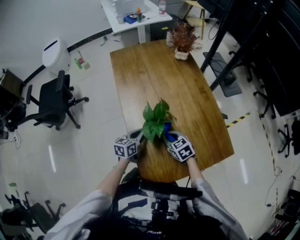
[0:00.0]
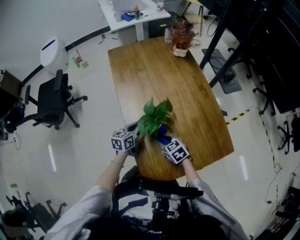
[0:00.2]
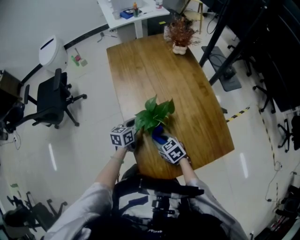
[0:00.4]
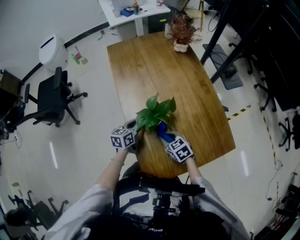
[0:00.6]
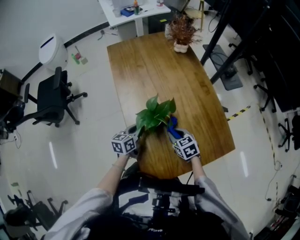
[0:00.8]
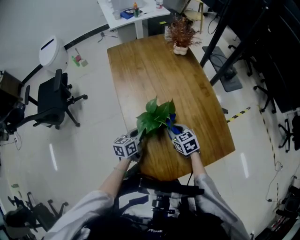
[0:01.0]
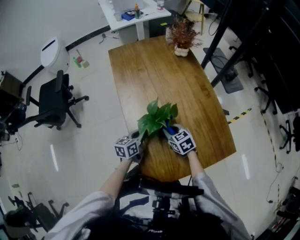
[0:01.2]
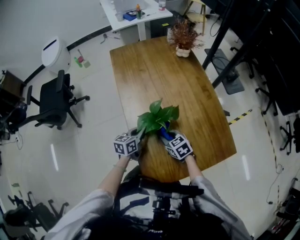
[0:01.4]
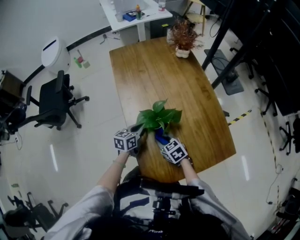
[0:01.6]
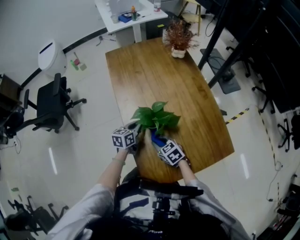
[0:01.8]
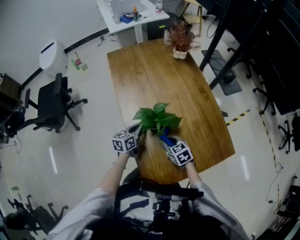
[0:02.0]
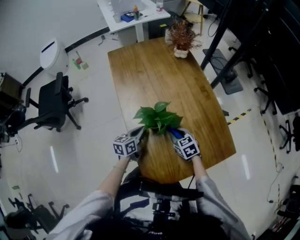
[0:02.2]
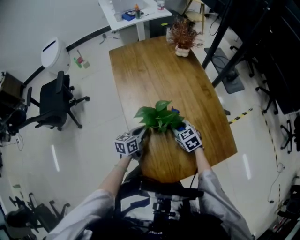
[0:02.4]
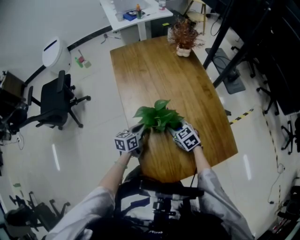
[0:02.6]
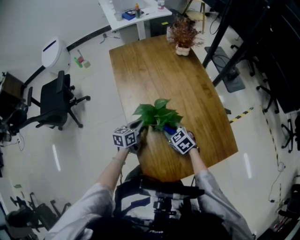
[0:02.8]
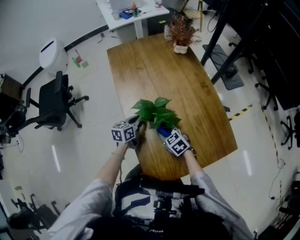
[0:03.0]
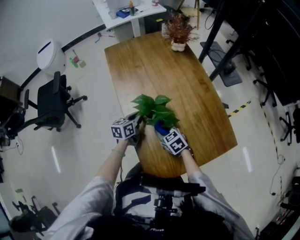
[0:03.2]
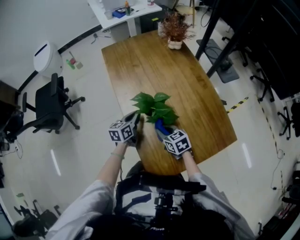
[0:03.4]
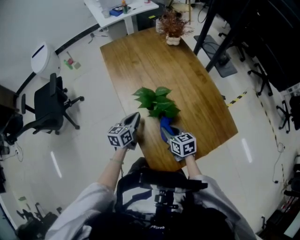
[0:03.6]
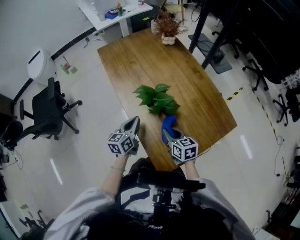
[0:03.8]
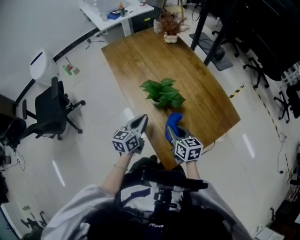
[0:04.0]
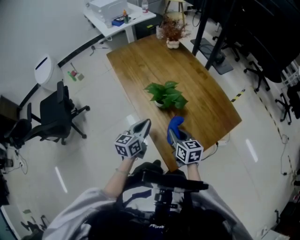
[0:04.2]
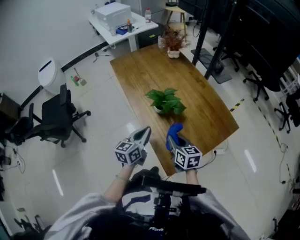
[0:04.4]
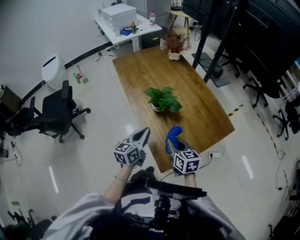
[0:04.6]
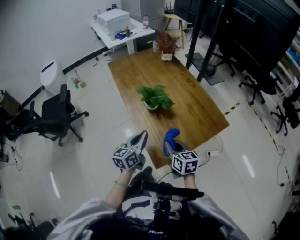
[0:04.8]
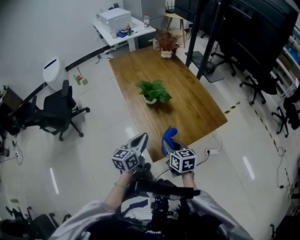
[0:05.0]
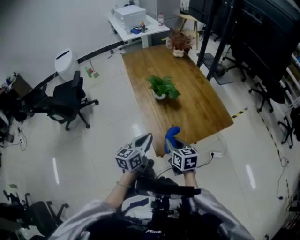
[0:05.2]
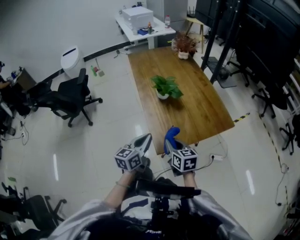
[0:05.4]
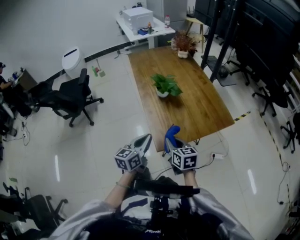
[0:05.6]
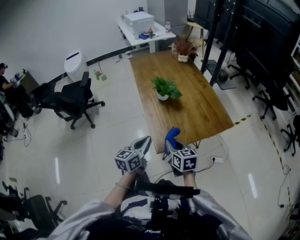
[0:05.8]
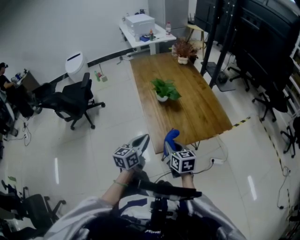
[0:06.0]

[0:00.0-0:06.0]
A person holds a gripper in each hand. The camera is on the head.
0:00.0 to 0:01.6: The right gripper swings left and right, some 10 cm each way, with 2 reversals.
0:01.6 to 0:03.0: The right gripper reaches some 10 cm to the right, then returns.
0:03.0 to 0:04.4: The two grippers go about 15 cm backward and upward. The right gripper rotates approximately 50 degrees.
0:04.4 to 0:06.0: Both grippers travel together backward, approximately 20 cm.

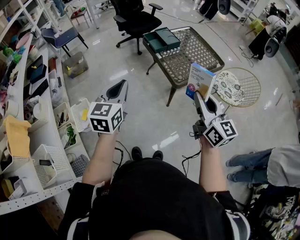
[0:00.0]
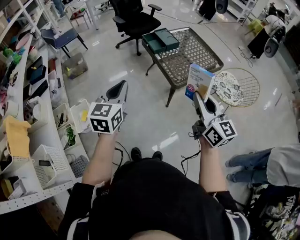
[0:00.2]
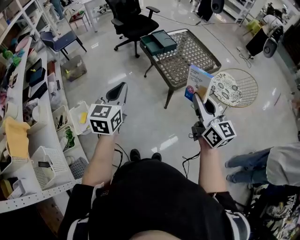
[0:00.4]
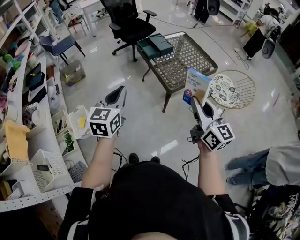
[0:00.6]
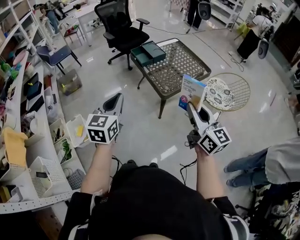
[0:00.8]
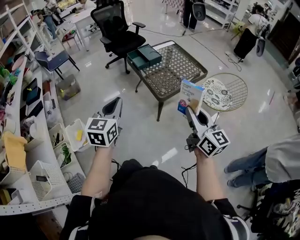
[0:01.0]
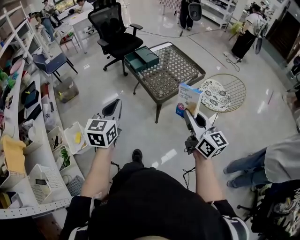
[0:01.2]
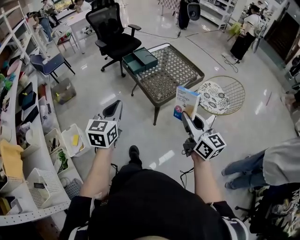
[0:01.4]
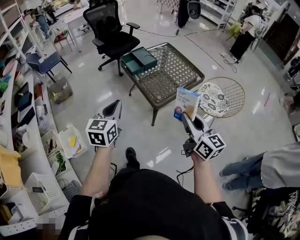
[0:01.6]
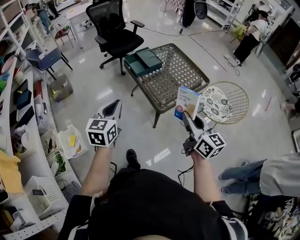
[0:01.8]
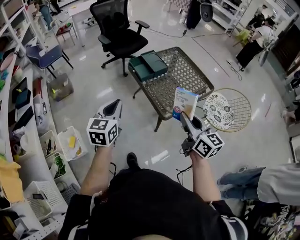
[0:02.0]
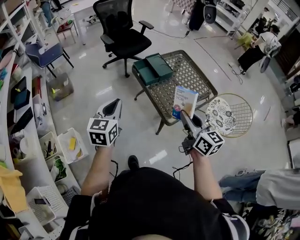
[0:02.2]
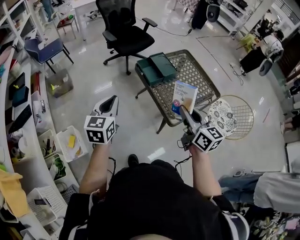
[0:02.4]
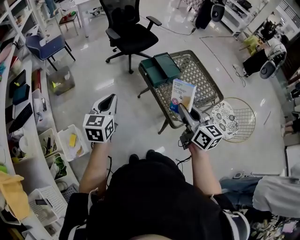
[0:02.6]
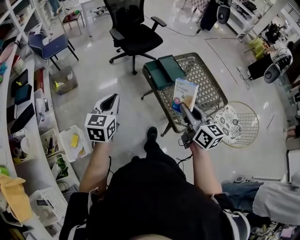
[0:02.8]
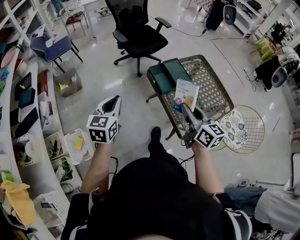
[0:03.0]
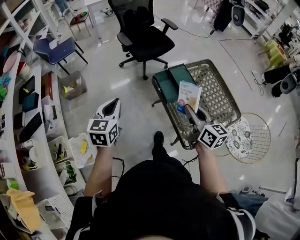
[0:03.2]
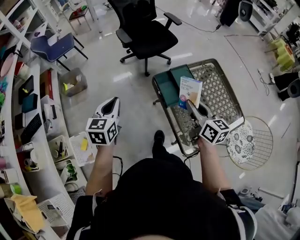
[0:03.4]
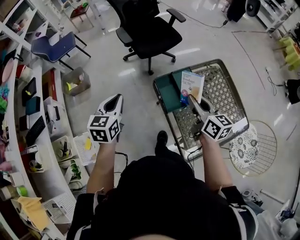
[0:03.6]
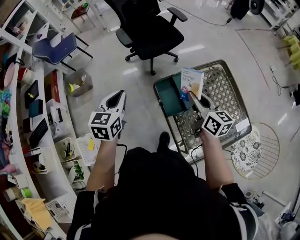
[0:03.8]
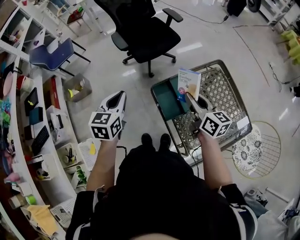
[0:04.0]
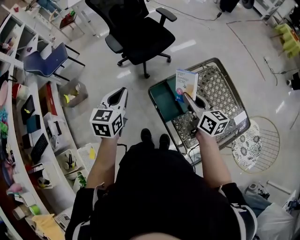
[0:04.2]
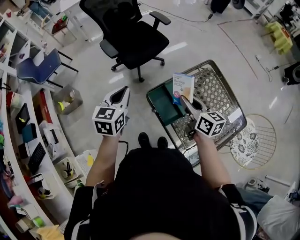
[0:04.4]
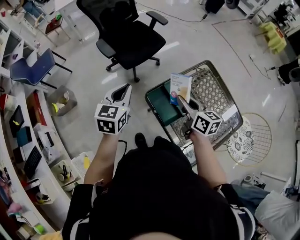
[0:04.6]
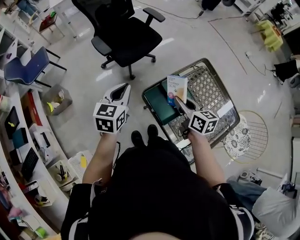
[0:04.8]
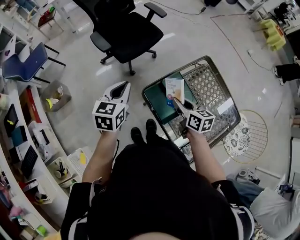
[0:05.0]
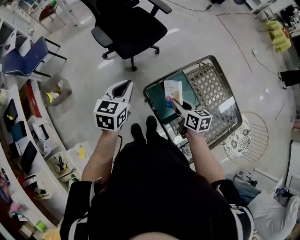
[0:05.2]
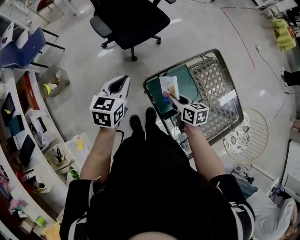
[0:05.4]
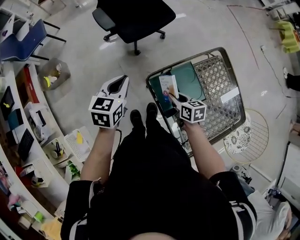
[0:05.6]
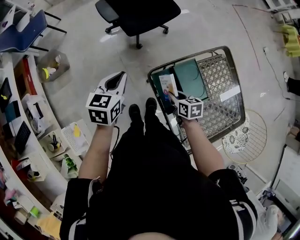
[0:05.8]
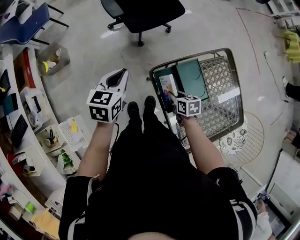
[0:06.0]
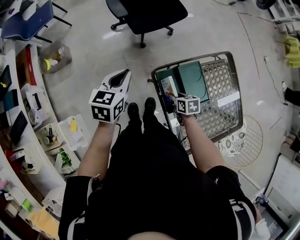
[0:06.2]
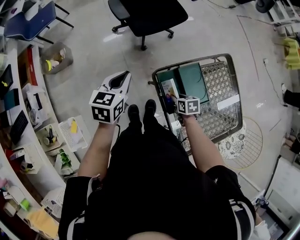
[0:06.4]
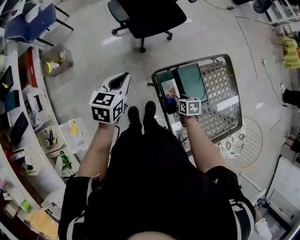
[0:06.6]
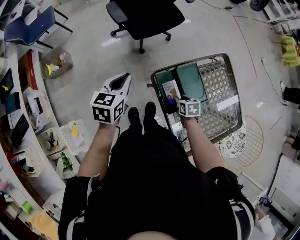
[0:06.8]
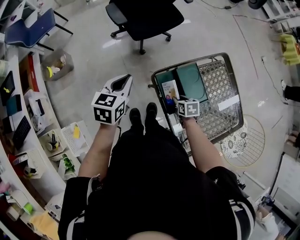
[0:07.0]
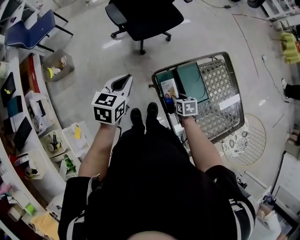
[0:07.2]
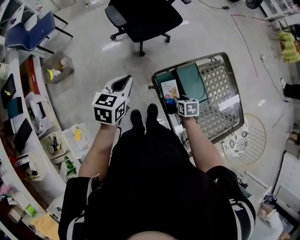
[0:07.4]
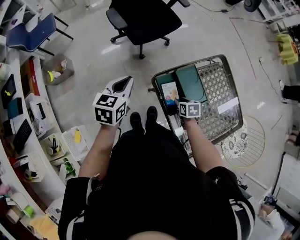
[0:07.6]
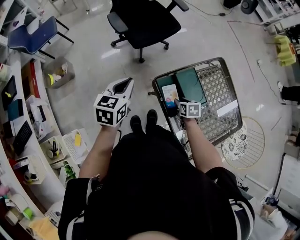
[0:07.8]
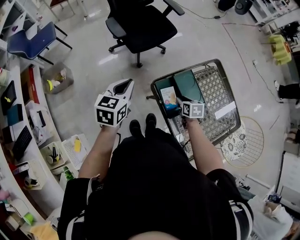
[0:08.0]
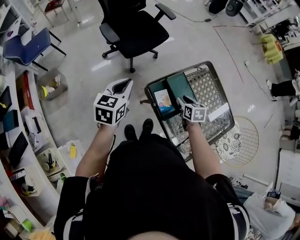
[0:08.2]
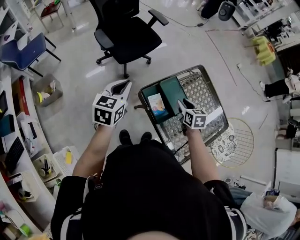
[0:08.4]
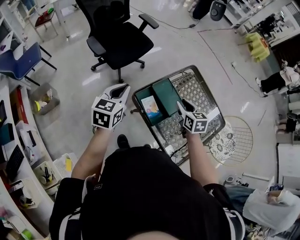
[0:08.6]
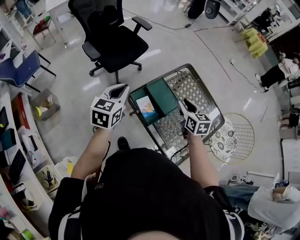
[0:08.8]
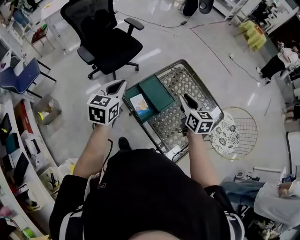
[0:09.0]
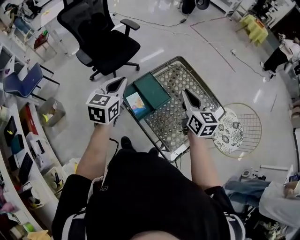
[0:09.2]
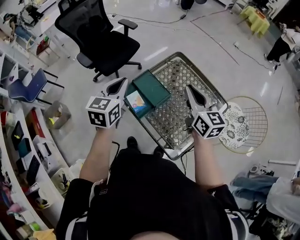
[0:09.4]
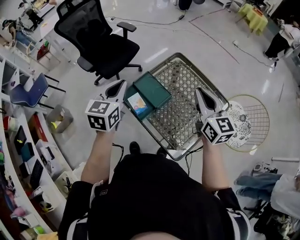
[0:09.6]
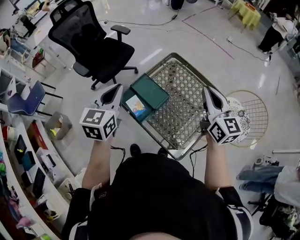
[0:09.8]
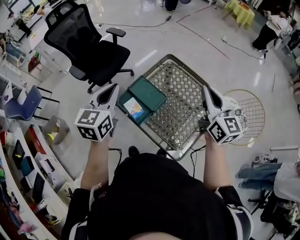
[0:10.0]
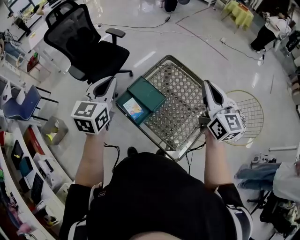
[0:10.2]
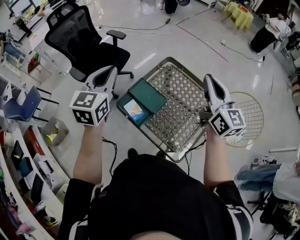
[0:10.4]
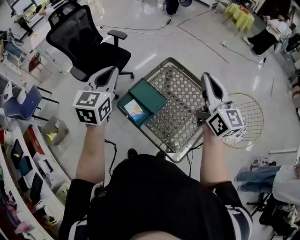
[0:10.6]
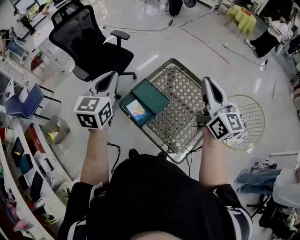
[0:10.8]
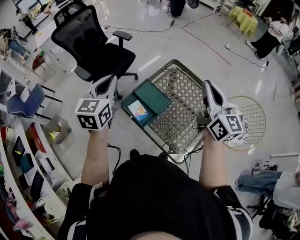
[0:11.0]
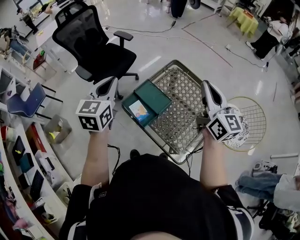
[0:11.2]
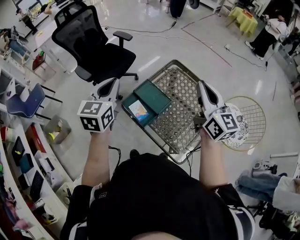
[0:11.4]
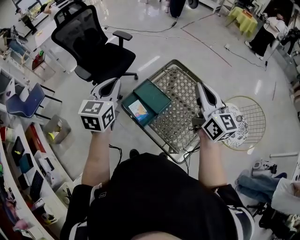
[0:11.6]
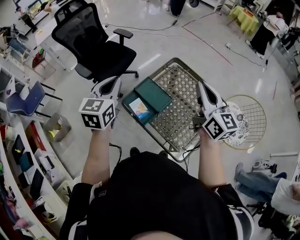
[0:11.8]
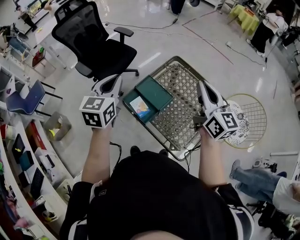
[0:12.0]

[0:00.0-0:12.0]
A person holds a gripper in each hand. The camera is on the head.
0:00.0 to 0:01.6: The right gripper travels to the right by approximately 10 cm. The left gripper shifts roughly 10 cm to the right and forward.
0:01.6 to 0:03.0: Both grippers travel together forward and to the left, about 35 cm.
0:03.0 to 0:04.4: The grippers both shift forward by roughly 30 cm.
0:04.4 to 0:06.0: The left gripper travels downward by about 10 cm. Meanwhile the right gripper is displaced downward by some 25 cm, and angles its fingers downward, by some 40 degrees.
0:06.0 to 0:07.6: The grippers move only a little.
0:07.6 to 0:09.0: The left gripper shifts some 15 cm to the right and upward. Meanwhile the right gripper moves upward and to the right, some 30 cm, and tilts its fingers approximately 40 degrees upward.
0:09.0 to 0:10.4: The right gripper goes roughly 25 cm upward and to the right, rotates approximately 30 degrees, and closes up, while the left gripper is displaced upward and to the right by roughly 15 cm.
0:10.4 to 0:12.0: The right gripper shifts by approximately 5 cm. The left gripper shifts by approximately 5 cm.

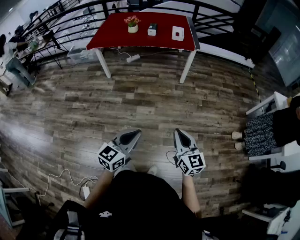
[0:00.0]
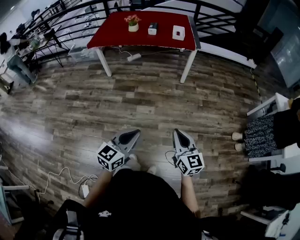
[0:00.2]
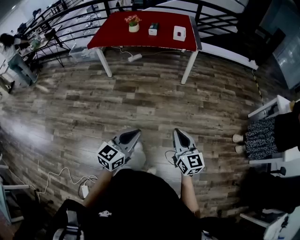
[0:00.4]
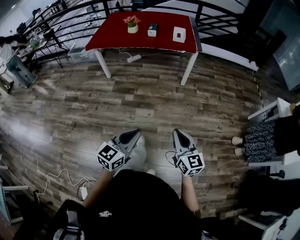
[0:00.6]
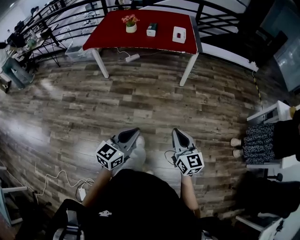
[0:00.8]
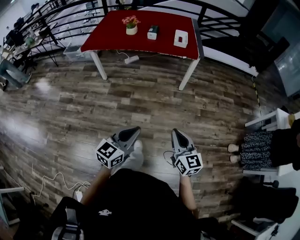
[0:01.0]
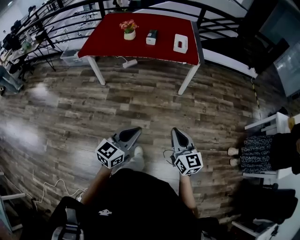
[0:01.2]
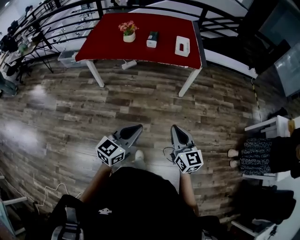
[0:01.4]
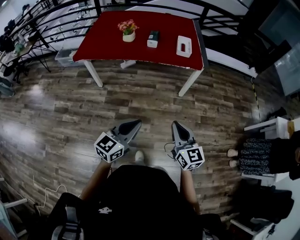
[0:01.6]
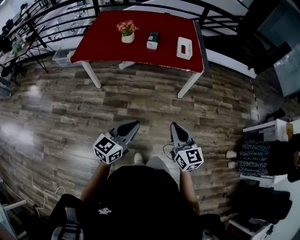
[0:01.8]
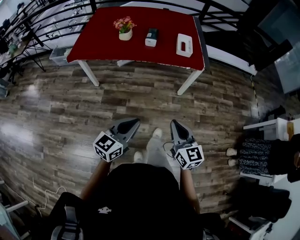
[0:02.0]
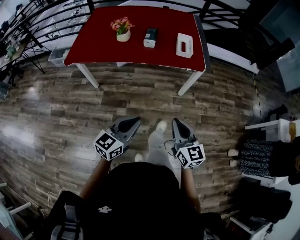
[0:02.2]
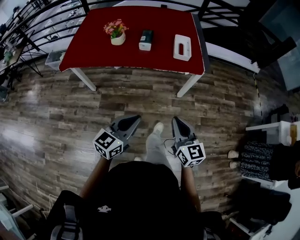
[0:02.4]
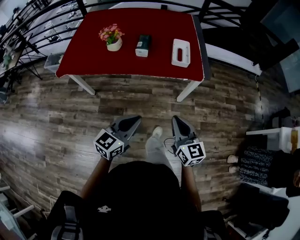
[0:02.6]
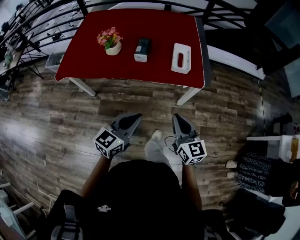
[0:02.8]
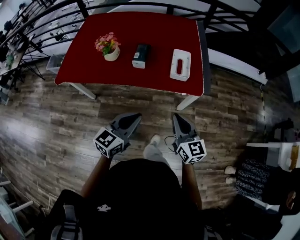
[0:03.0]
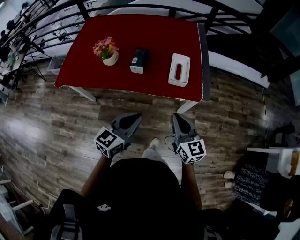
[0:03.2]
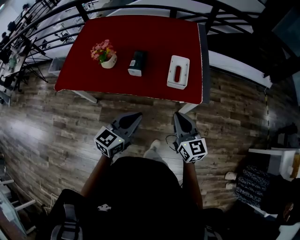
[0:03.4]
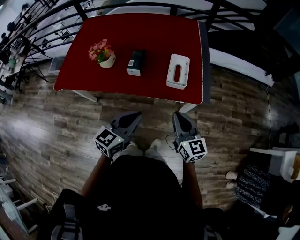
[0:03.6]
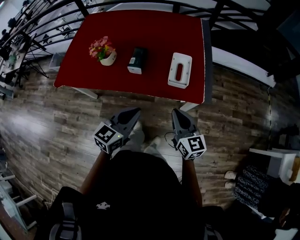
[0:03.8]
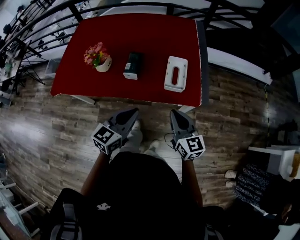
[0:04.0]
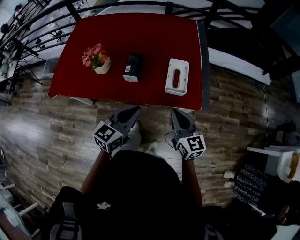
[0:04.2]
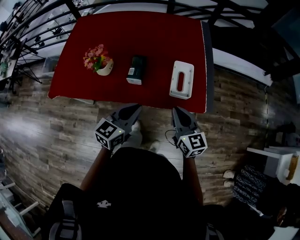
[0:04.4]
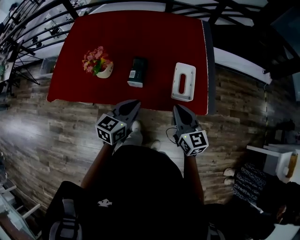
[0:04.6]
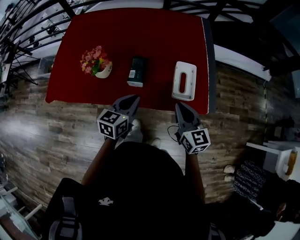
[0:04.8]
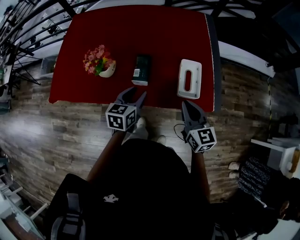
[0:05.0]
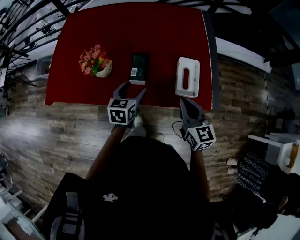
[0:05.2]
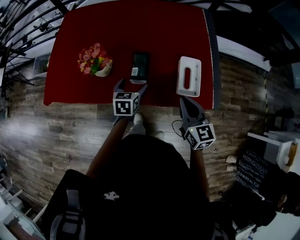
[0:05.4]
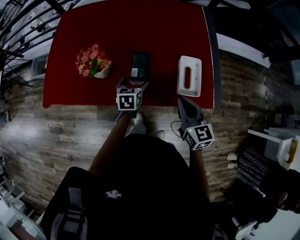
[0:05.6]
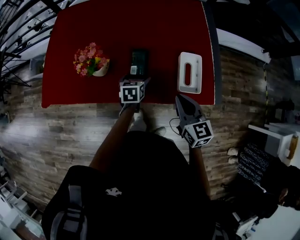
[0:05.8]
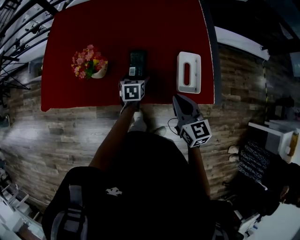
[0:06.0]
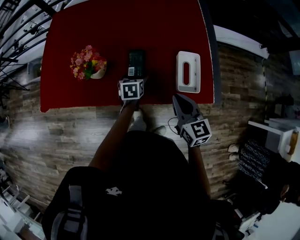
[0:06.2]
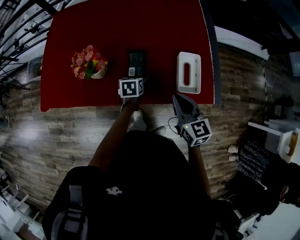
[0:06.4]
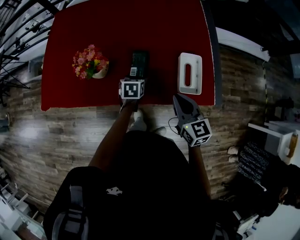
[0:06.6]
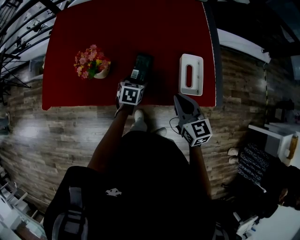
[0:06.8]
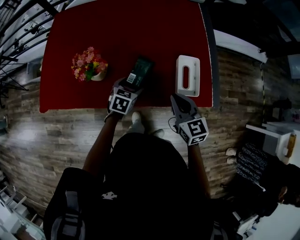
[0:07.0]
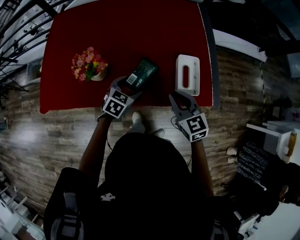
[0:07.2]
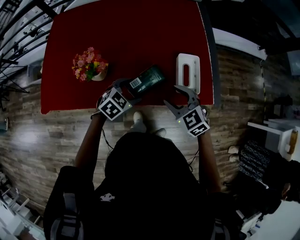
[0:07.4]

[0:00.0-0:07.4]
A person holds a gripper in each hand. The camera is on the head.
0:00.0 to 0:01.4: The two grippers go some 30 cm forward.
0:01.4 to 0:03.0: The two grippers travel together, forward, roughly 40 cm.
0:03.0 to 0:04.4: Both grippers move forward, approximately 20 cm.
0:04.4 to 0:06.0: The right gripper goes about 10 cm forward and to the left. Meanwhile the left gripper heads downward and forward, covering about 30 cm, points its fingers roughly 40 degrees further downward, and opens its fingers.
0:06.0 to 0:07.4: The right gripper rotates some 40 degrees, and opens its fingers. The left gripper heads upward and backward, covering roughly 10 cm, and rotates around the line of its fingers by about 50 degrees, clockwise from behind.
